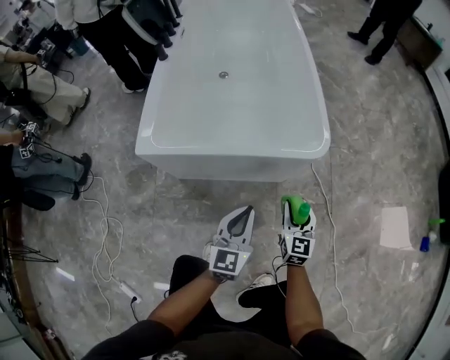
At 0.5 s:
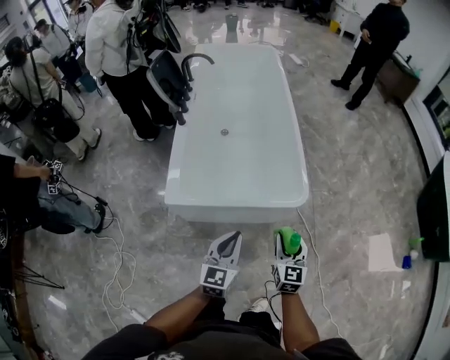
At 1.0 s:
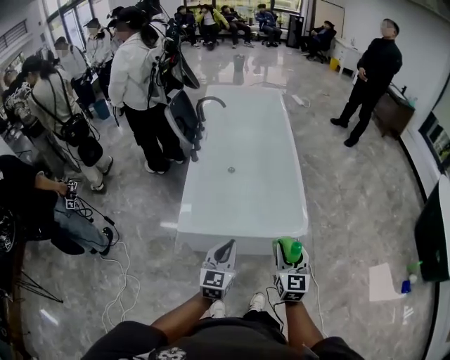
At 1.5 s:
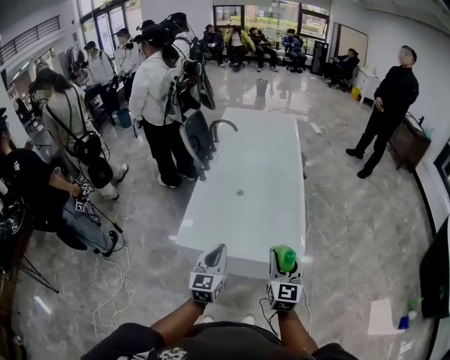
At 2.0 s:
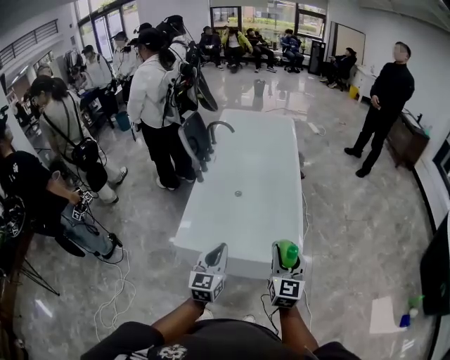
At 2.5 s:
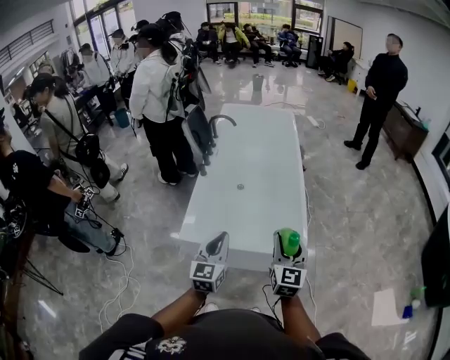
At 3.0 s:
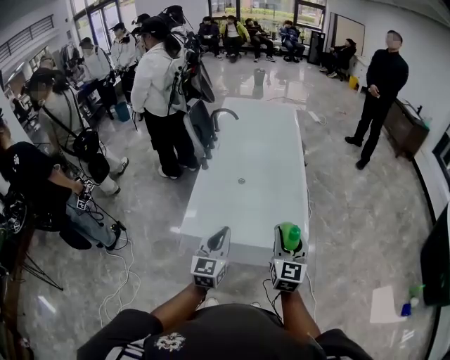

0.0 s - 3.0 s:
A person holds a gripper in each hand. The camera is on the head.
0.0 s - 1.5 s: The grippers both shift upward by approximately 40 cm.
1.5 s - 3.0 s: The right gripper changes place by roughly 5 cm.

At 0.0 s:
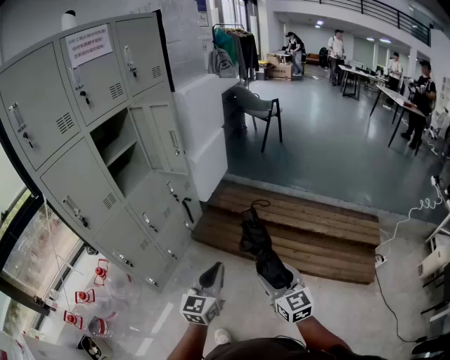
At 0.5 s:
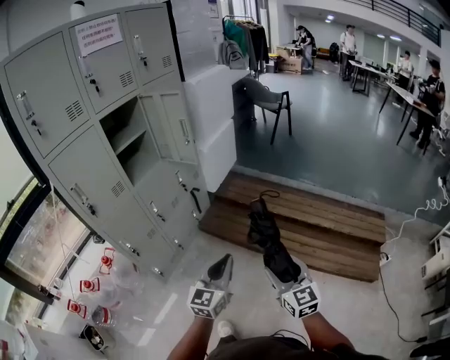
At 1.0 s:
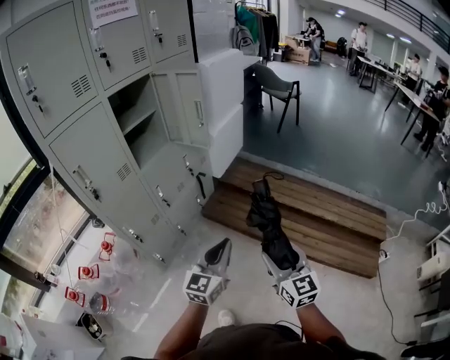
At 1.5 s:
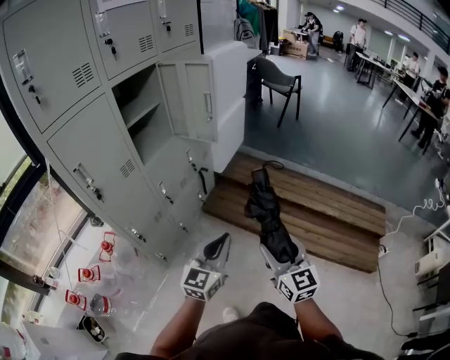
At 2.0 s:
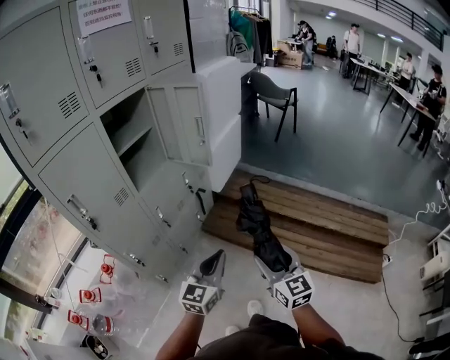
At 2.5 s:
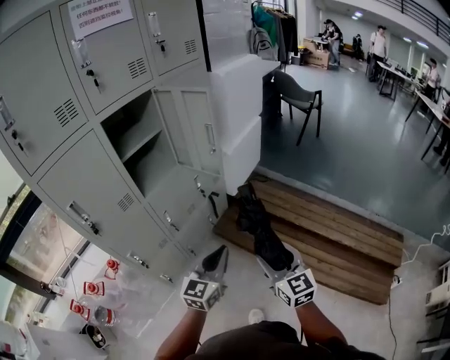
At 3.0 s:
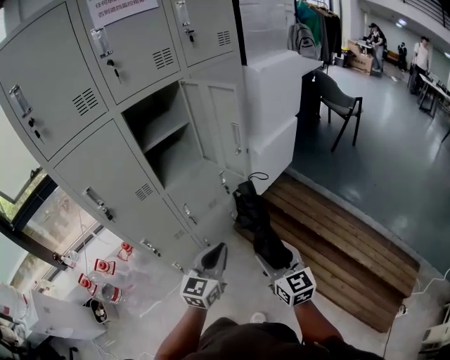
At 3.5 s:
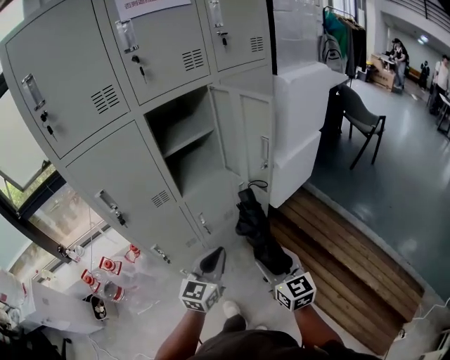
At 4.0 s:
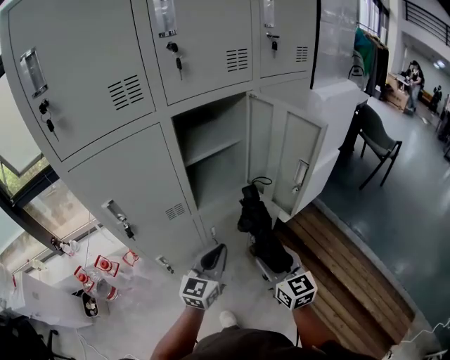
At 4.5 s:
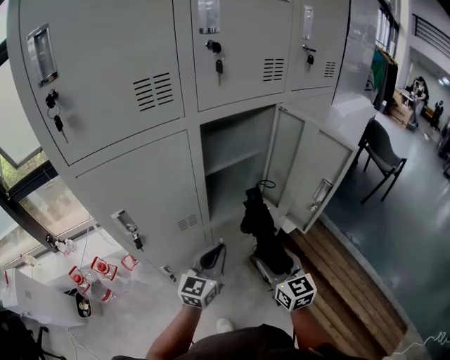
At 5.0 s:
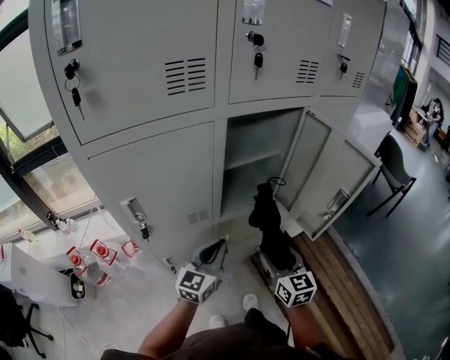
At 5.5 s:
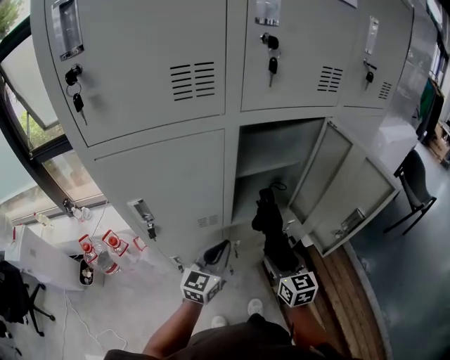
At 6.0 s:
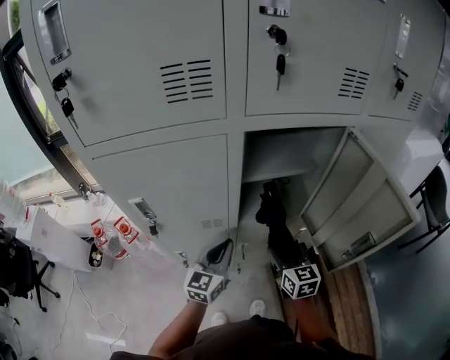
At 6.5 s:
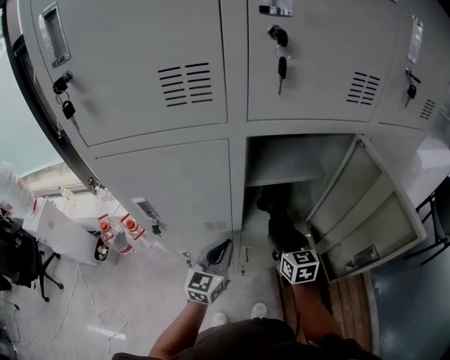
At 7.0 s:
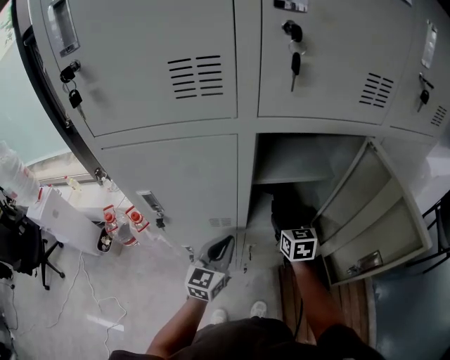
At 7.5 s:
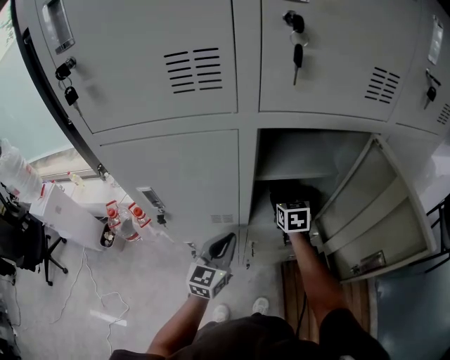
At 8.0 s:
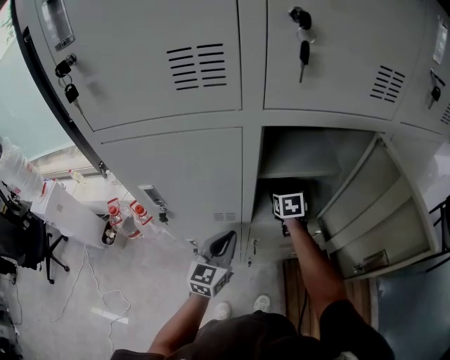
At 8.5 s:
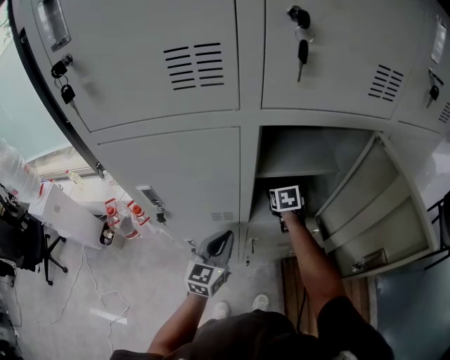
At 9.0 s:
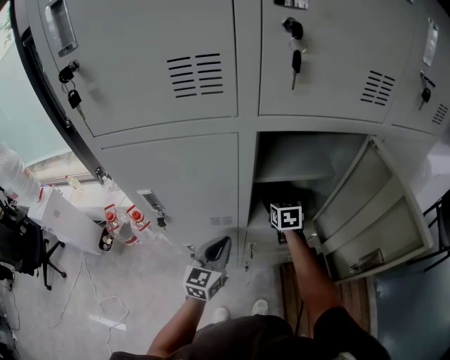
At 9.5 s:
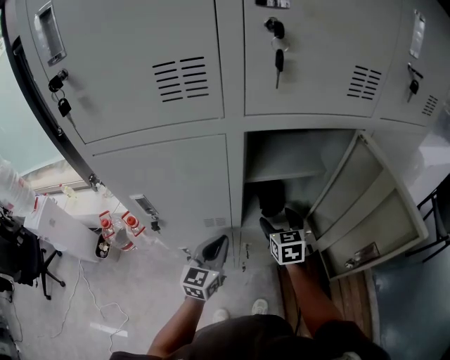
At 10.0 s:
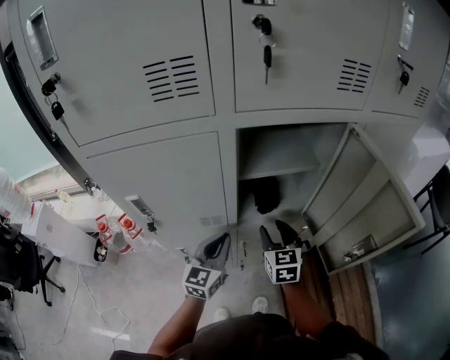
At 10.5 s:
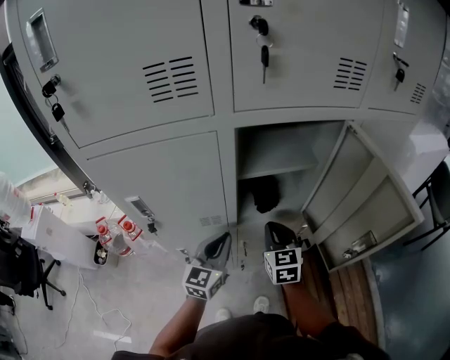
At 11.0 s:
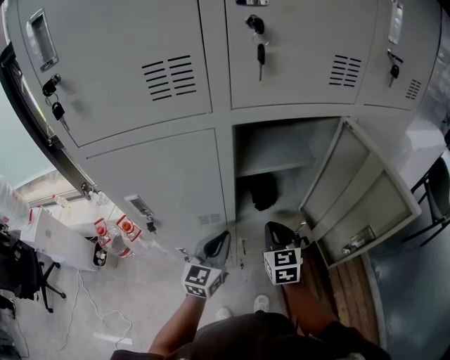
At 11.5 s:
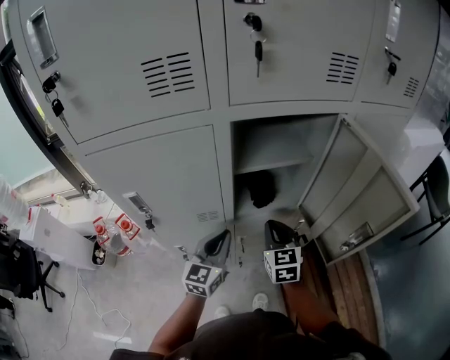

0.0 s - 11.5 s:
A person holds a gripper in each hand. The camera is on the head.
0.0 s - 2.0 s: The grippers both shift to the left and forward by about 15 cm.
2.0 s - 4.0 s: The left gripper moves some 30 cm, and turns by some 30 degrees. The right gripper shifts by about 35 cm, and swivels some 30 degrees.
4.0 s - 6.0 s: The left gripper shifts about 15 cm forward and to the left, and changes its angle by roughly 20 degrees. The right gripper is displaced forward by roughly 20 cm.
6.0 s - 7.5 s: The right gripper goes approximately 20 cm forward.
7.5 s - 9.5 s: The right gripper shifts roughly 10 cm backward.
9.5 s - 11.5 s: The right gripper heads backward, covering approximately 10 cm, and closes its fingers.

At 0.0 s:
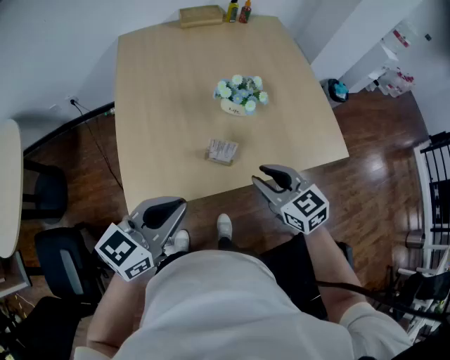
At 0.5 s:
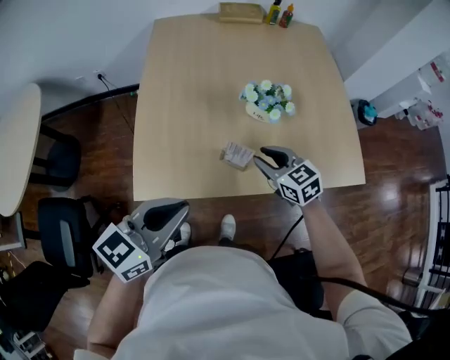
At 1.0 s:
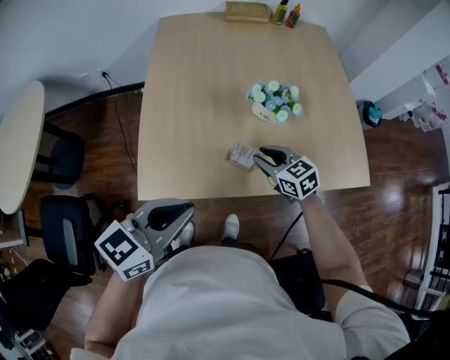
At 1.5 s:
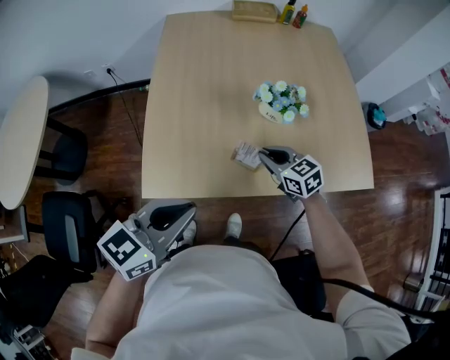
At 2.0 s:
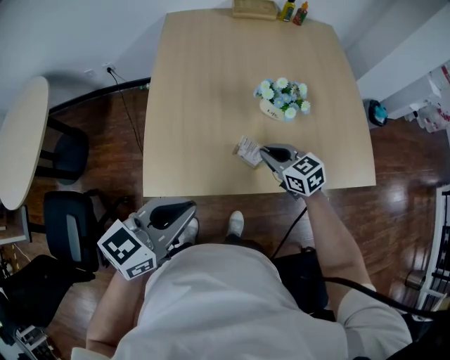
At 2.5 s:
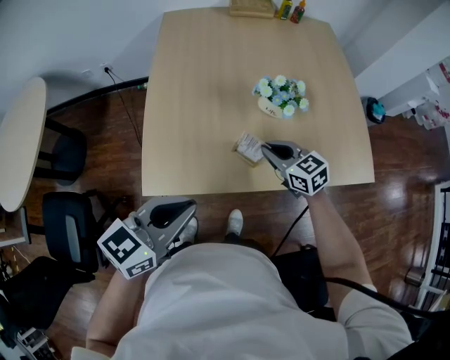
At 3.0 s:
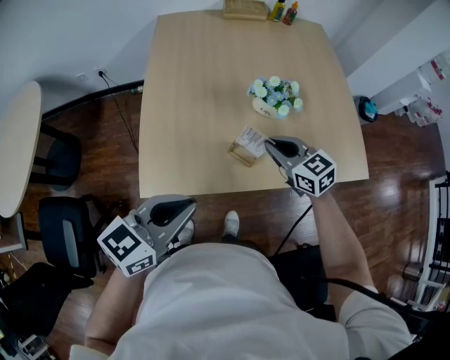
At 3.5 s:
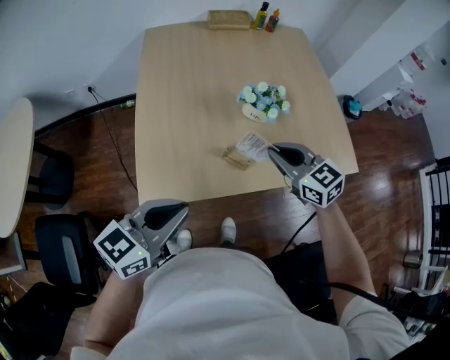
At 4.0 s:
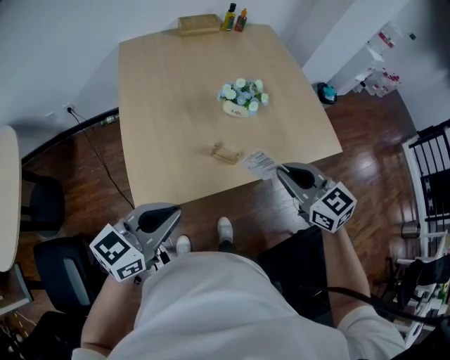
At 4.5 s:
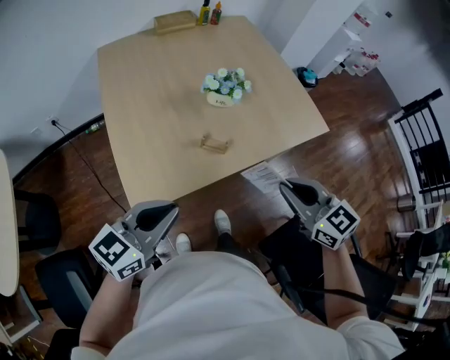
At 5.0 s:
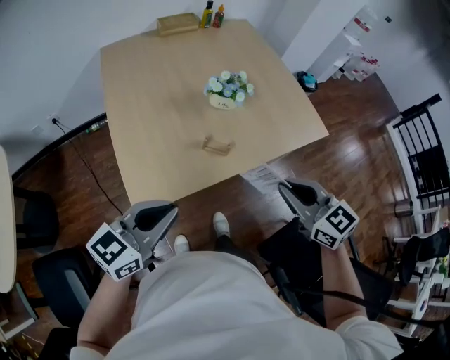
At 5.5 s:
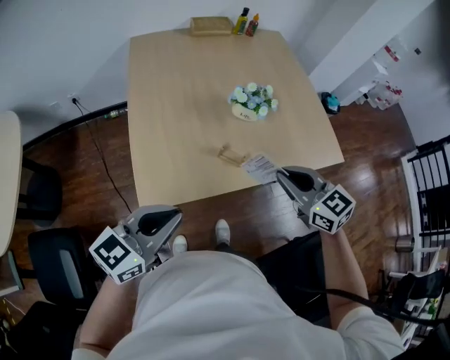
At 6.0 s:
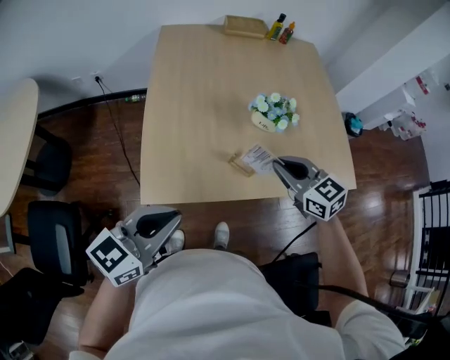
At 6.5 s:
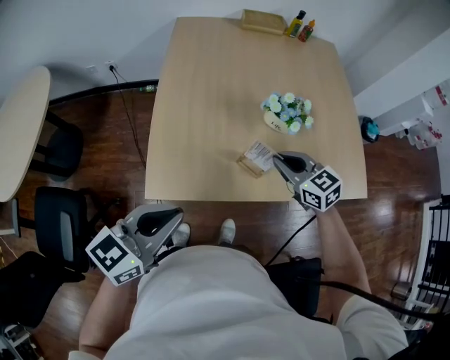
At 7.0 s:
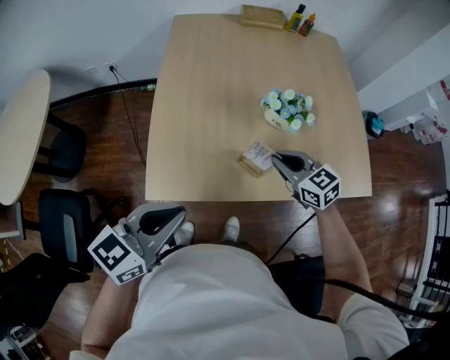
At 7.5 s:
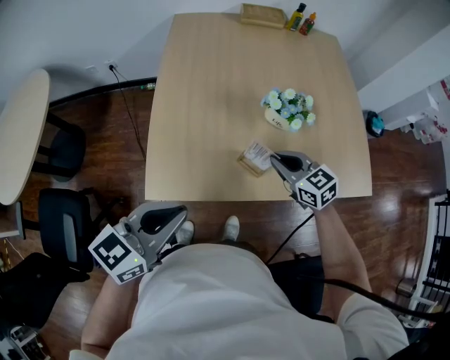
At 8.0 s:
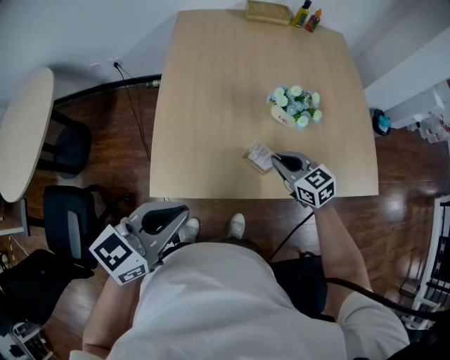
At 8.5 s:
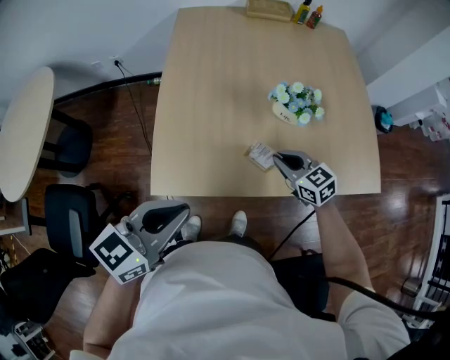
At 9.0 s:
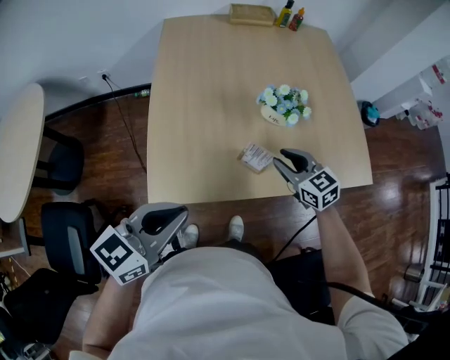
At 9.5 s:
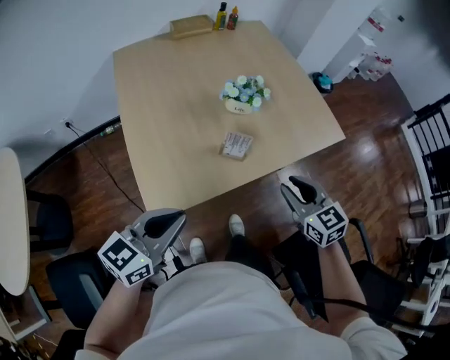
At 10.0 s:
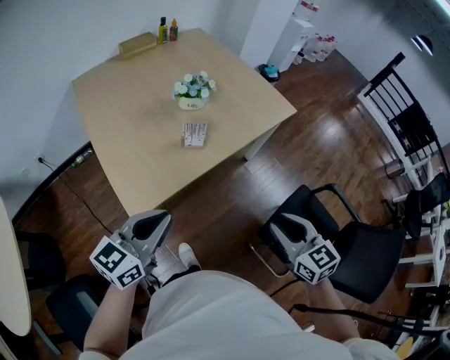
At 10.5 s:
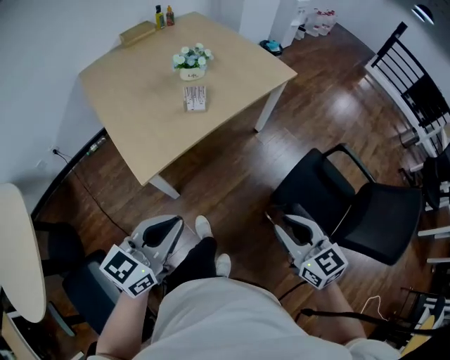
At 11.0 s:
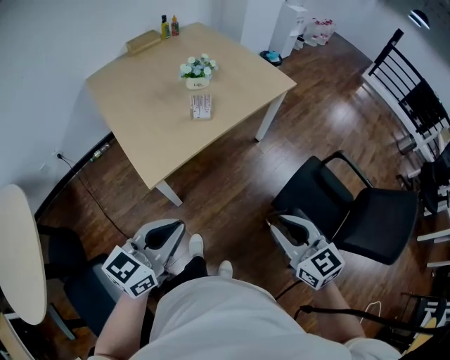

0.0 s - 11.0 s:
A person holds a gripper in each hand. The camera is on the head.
0.0 s - 2.0 s: The right gripper moves forward and downward, some 15 cm, and closes.
2.0 s - 3.5 s: The right gripper shifts approximately 15 cm upward.
3.5 s - 5.5 s: The right gripper shifts roughly 10 cm backward.
5.5 s - 7.5 s: The right gripper heads forward and downward, covering some 20 cm.
7.5 s - 9.0 s: The right gripper opens.
9.0 s - 11.0 s: The left gripper ends up some 25 cm from where it was, and rotates about 30 degrees. The right gripper ends up some 50 cm from where it was, and changes its angle by roughly 40 degrees.

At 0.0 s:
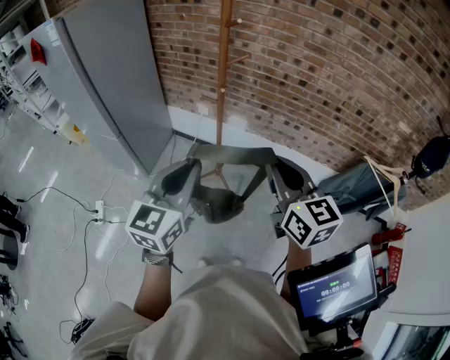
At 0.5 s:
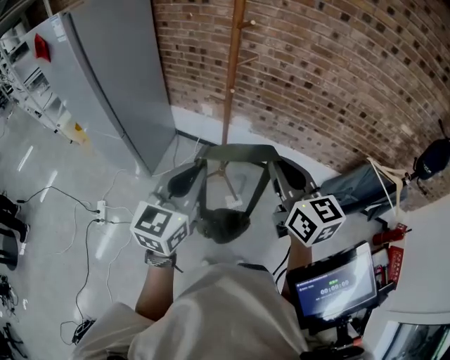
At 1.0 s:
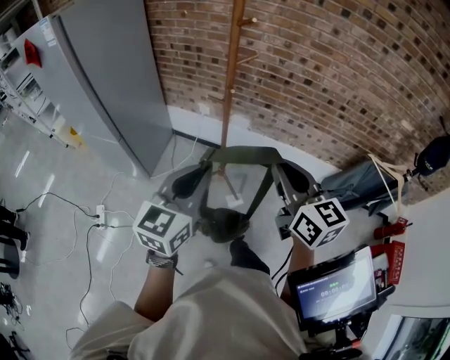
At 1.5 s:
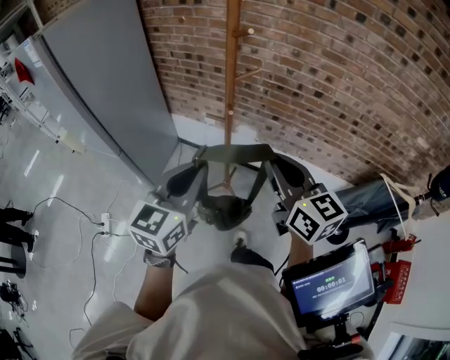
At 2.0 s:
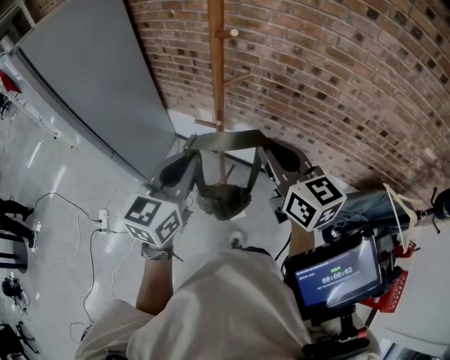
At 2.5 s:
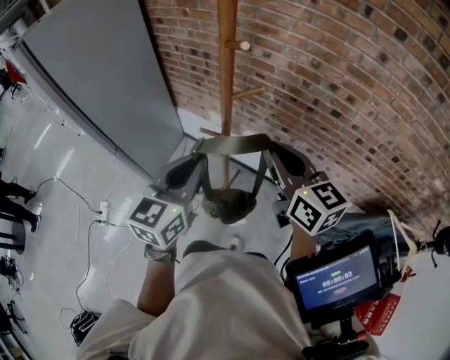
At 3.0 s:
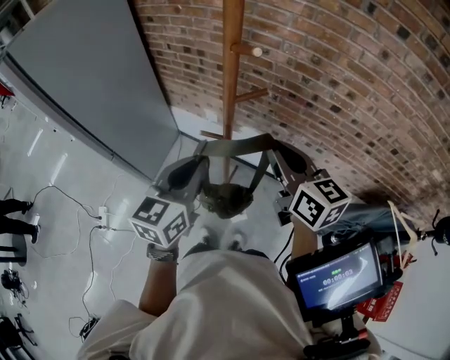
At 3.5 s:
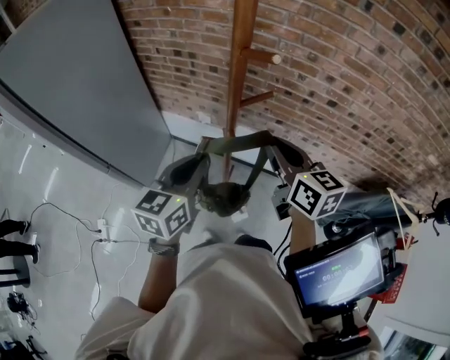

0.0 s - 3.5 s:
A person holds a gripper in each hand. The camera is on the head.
0.0 s - 2.0 s: Both grippers move forward, approximately 20 cm.
2.0 s - 3.5 s: The right gripper moves forward, some 10 cm, while the left gripper is displaced forward and downward by some 10 cm.
